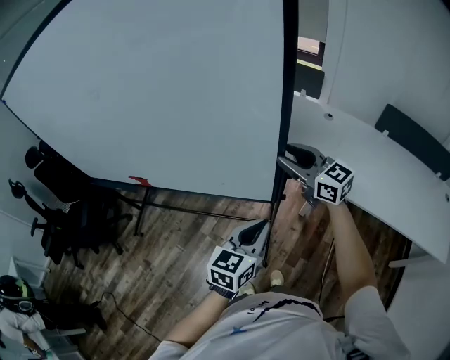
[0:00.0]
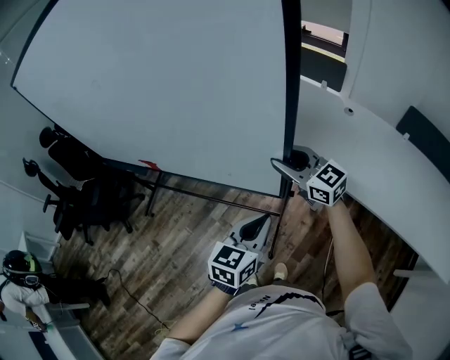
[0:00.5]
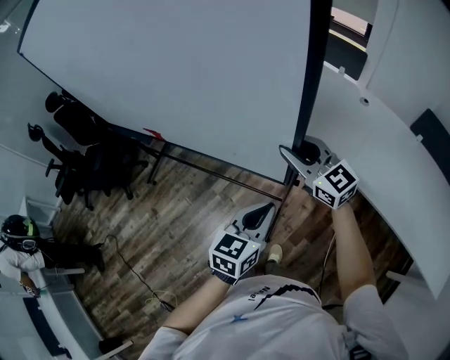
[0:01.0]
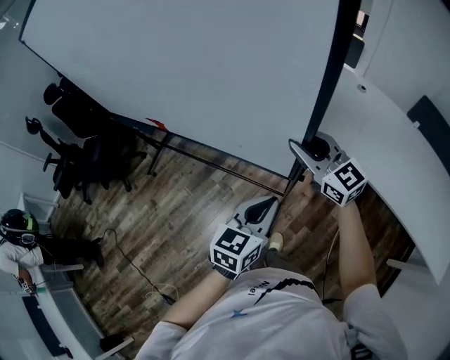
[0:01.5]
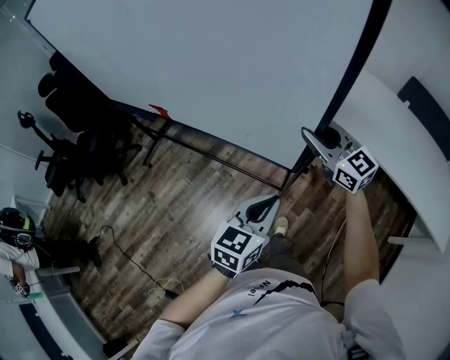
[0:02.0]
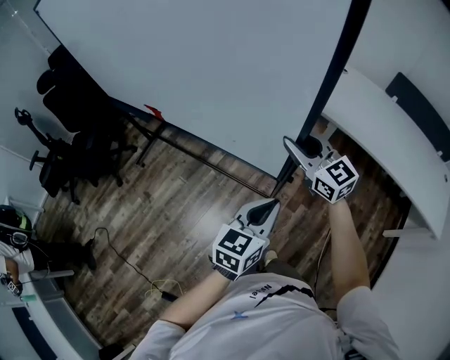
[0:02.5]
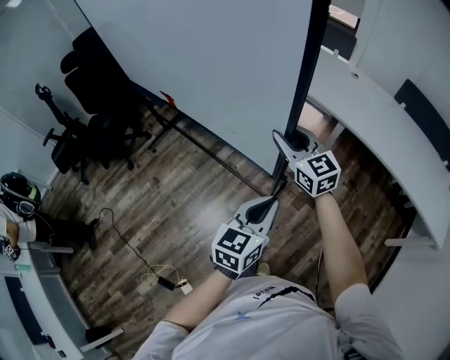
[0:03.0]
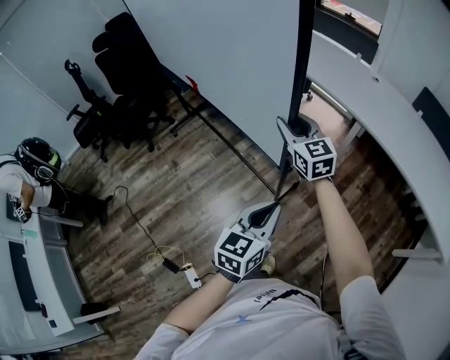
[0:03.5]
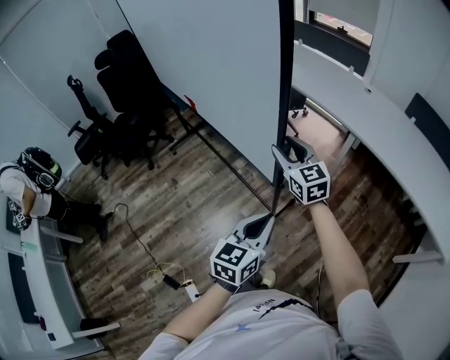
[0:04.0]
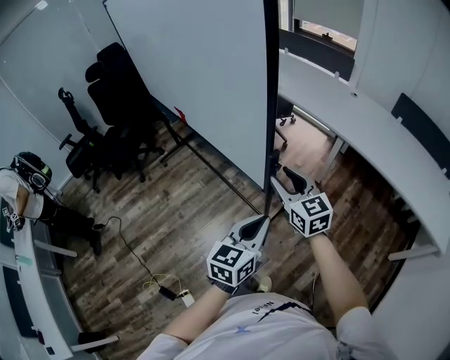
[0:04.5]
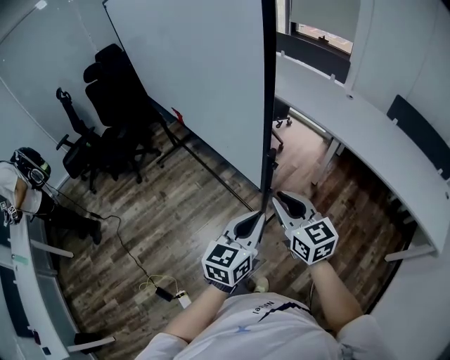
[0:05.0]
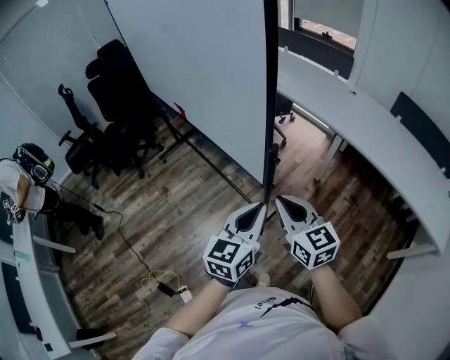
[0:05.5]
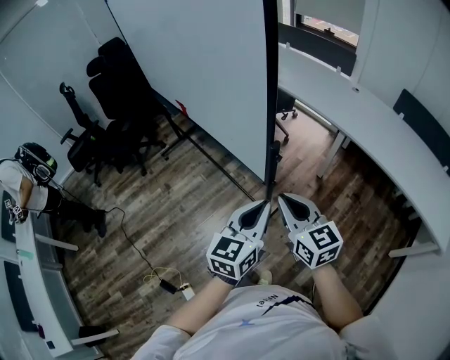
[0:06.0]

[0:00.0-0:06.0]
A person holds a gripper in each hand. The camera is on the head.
0:00.0 to 0:02.0: Both grippers travel together backward and to the left, some 20 cm.
0:02.0 to 0:04.0: The left gripper goes about 25 cm backward. The right gripper moves backward and to the left, roughly 25 cm.
0:04.0 to 0:06.0: The right gripper goes roughly 20 cm backward, and closes up.

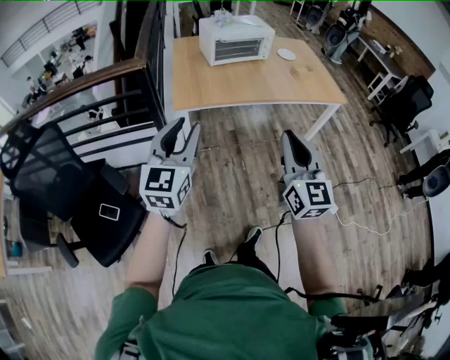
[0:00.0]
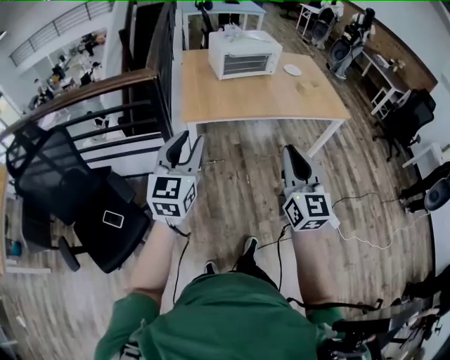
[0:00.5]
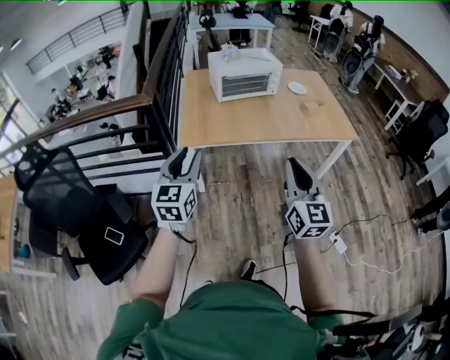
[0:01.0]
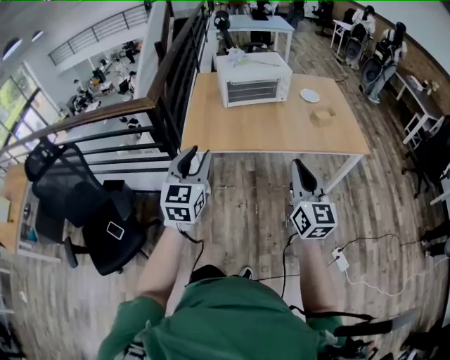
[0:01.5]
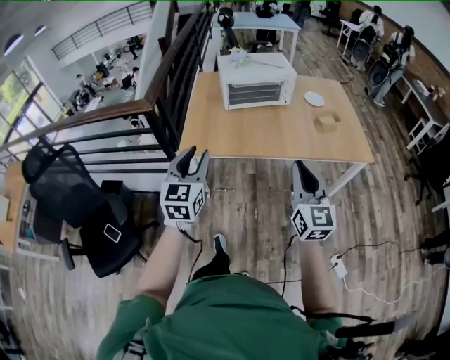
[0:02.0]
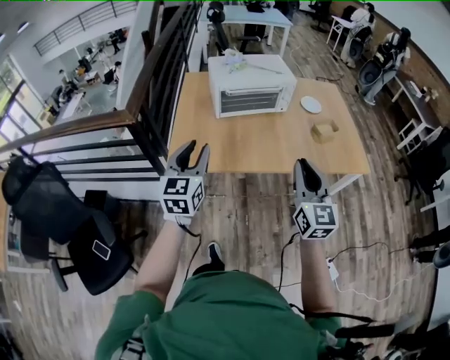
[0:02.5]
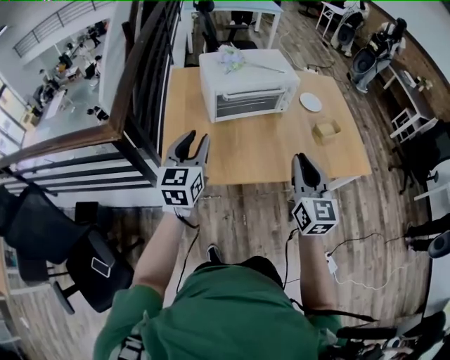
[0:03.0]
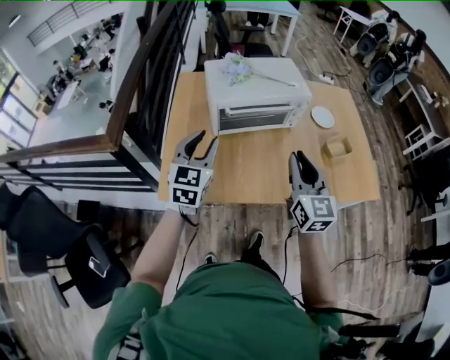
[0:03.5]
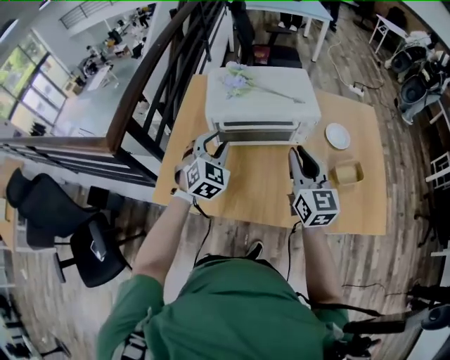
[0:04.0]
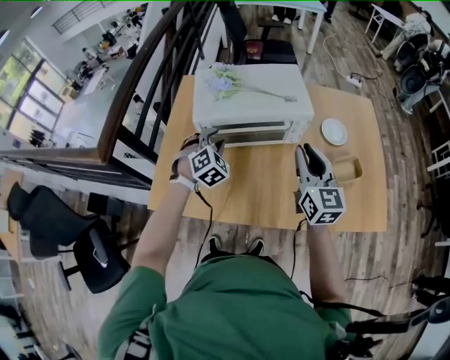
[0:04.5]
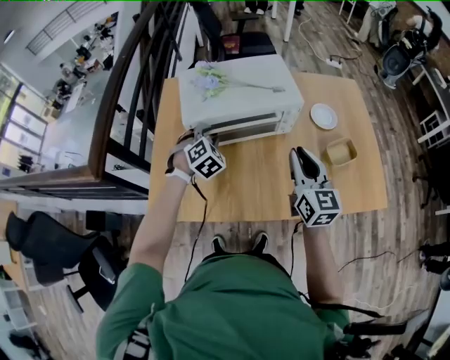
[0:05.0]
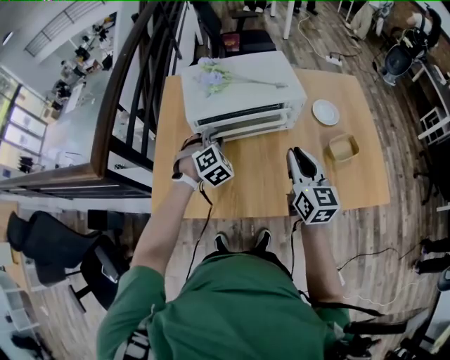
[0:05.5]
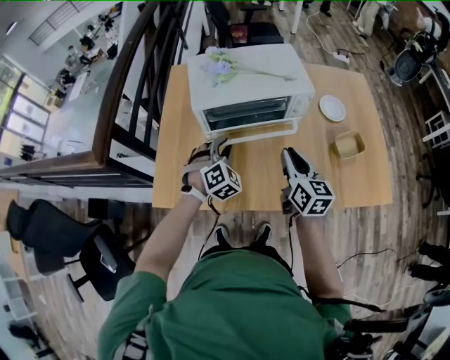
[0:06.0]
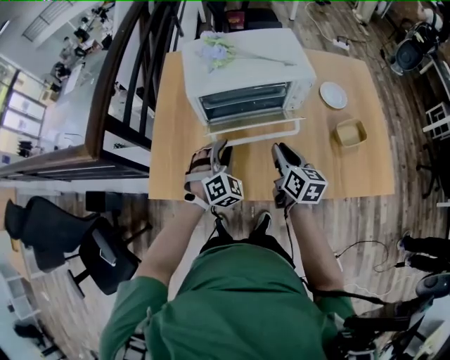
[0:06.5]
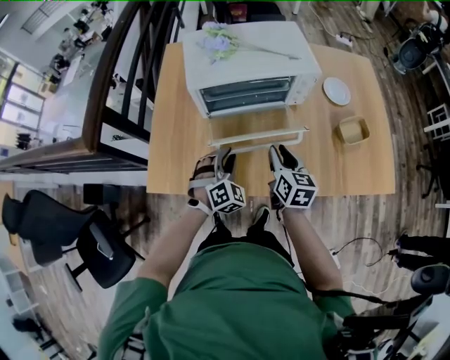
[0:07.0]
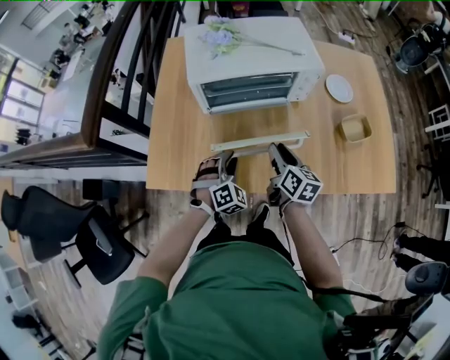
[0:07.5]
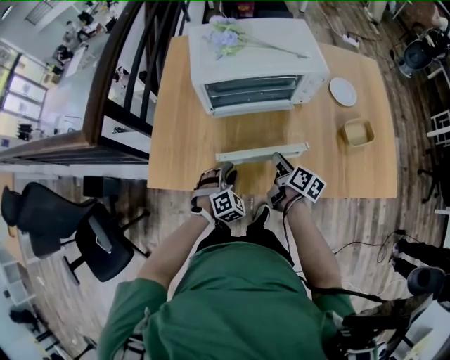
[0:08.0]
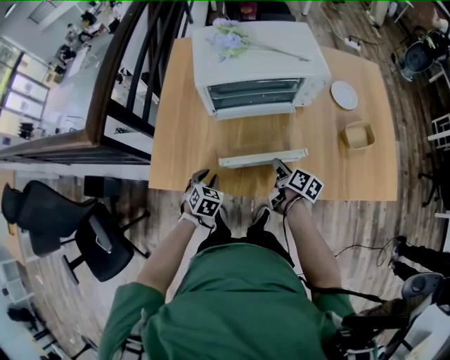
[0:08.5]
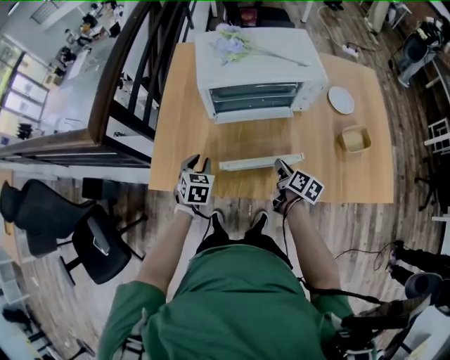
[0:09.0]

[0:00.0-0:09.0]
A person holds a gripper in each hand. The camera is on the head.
0:00.0 to 0:02.0: The two grippers go some 25 cm forward and to the right.
0:02.0 to 0:04.5: The pair of grippers is taken forward, about 50 cm. The left gripper angles its fingers downward, by about 30 degrees.
0:04.5 to 0:07.0: The right gripper travels downward and to the left by some 20 cm, and turns by about 30 degrees. Meanwhile the left gripper moves backward and downward, some 15 cm.
0:07.0 to 0:09.0: The left gripper goes some 15 cm to the left, and rolls counterclockwise, seen from behind, by approximately 50 degrees. Meanwhile the right gripper heads downward, covering some 10 cm, and turns by some 30 degrees.

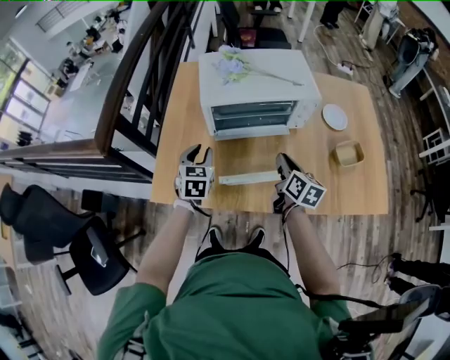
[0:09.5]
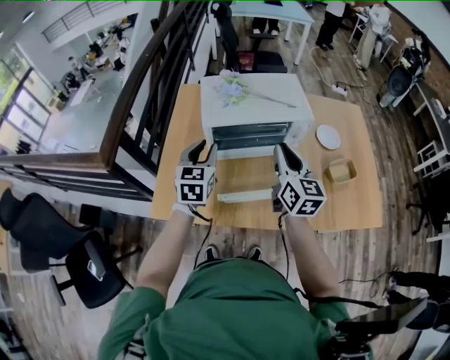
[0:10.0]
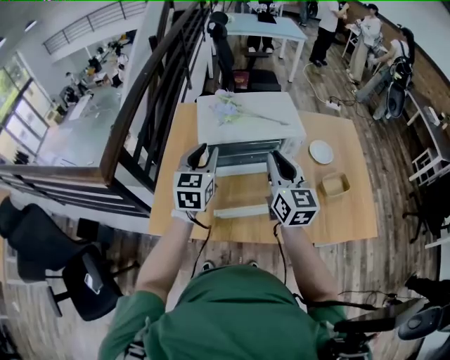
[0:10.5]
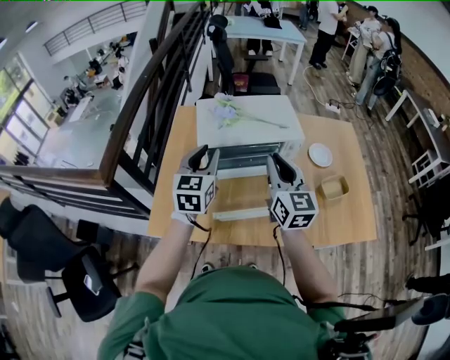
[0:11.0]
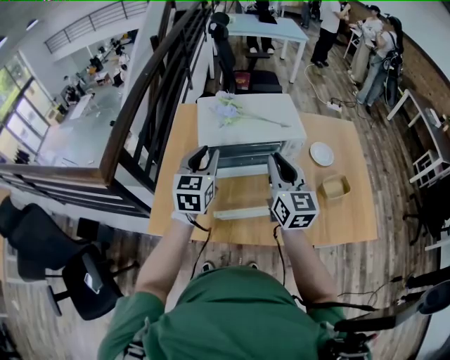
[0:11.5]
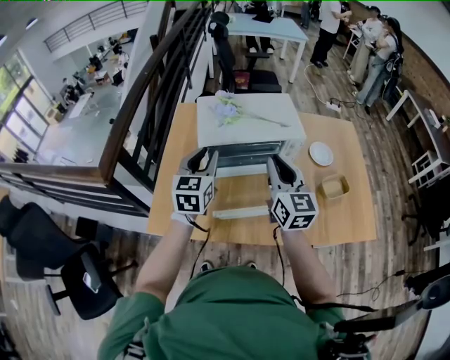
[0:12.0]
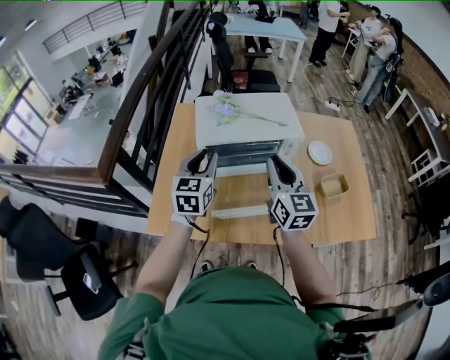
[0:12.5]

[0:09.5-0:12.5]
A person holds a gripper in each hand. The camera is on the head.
0:09.5 to 0:11.0: The grippers both shift upward by roughly 20 cm. The left gripper turns by some 20 degrees. The right gripper turns by roughly 40 degrees.
0:11.0 to 0:12.5: The grippers move only a little.

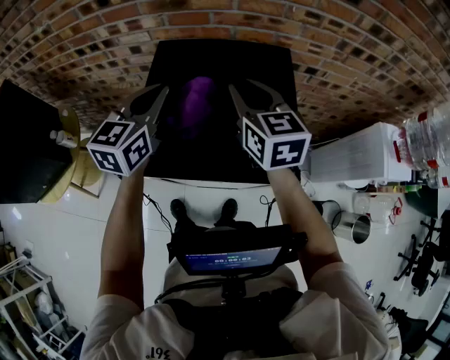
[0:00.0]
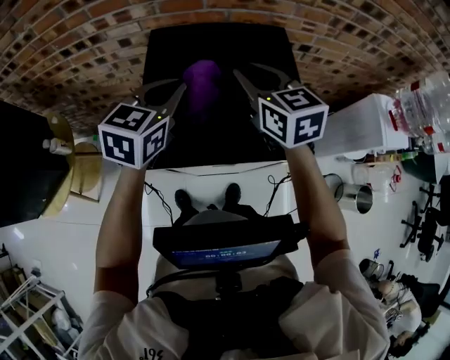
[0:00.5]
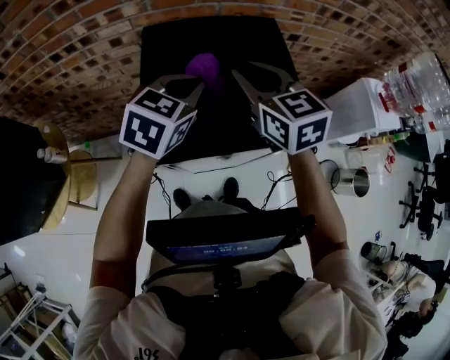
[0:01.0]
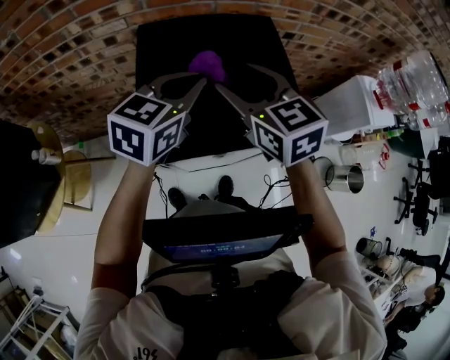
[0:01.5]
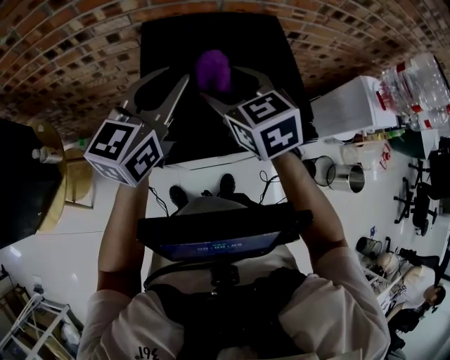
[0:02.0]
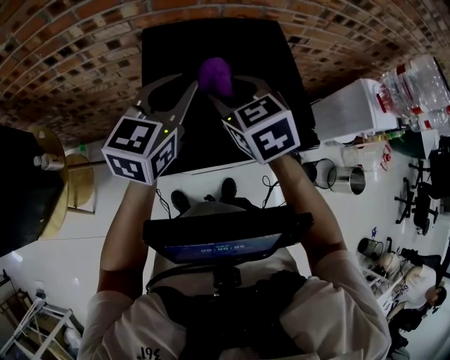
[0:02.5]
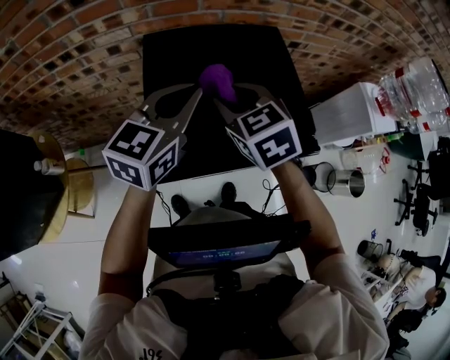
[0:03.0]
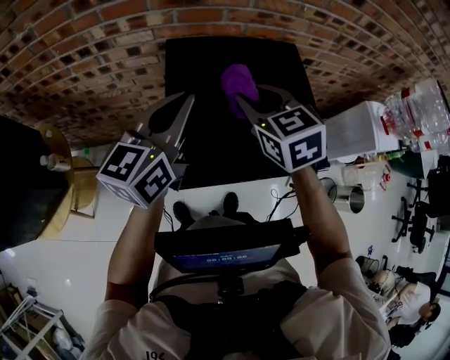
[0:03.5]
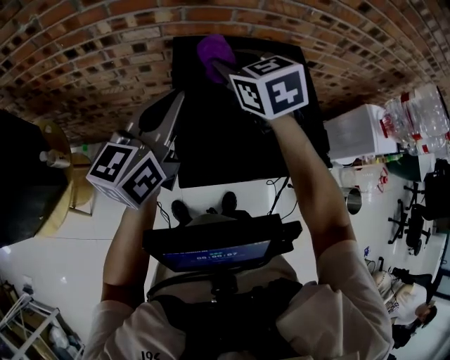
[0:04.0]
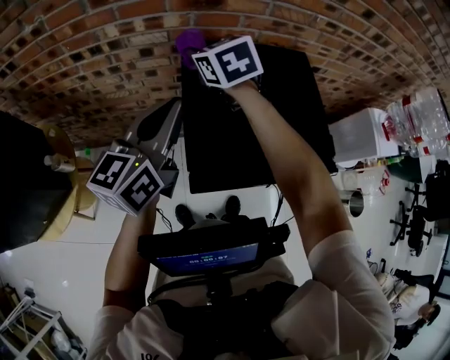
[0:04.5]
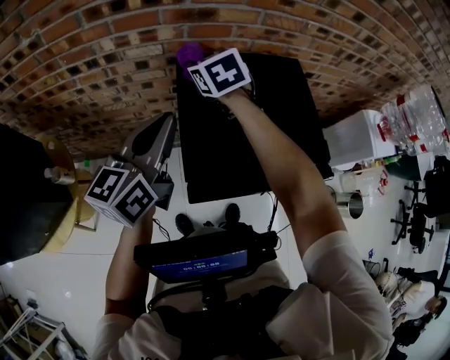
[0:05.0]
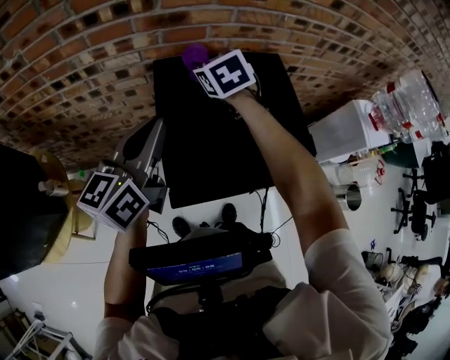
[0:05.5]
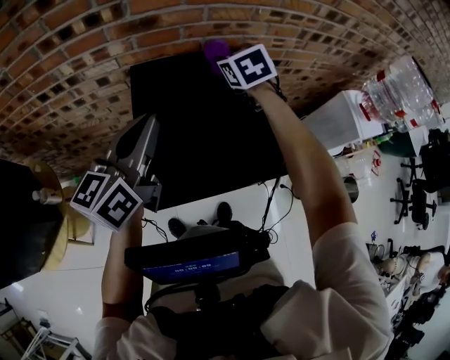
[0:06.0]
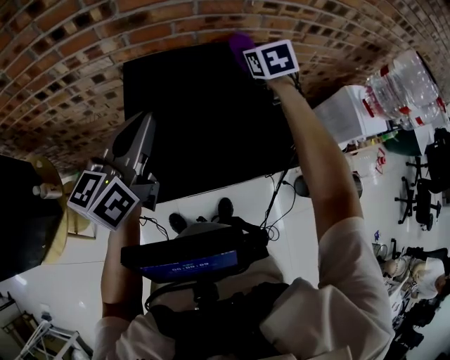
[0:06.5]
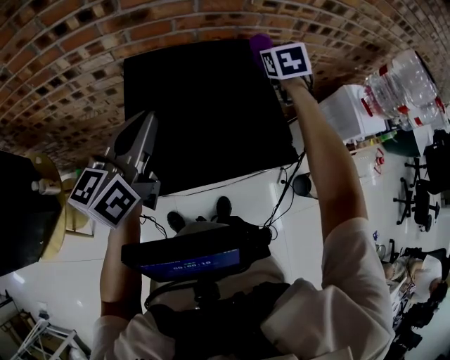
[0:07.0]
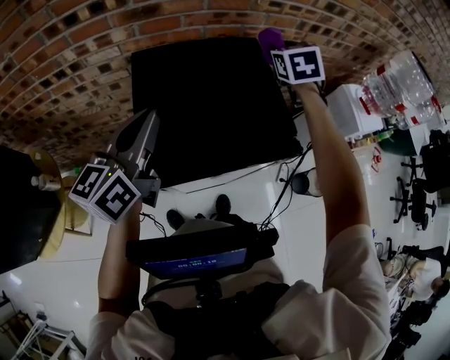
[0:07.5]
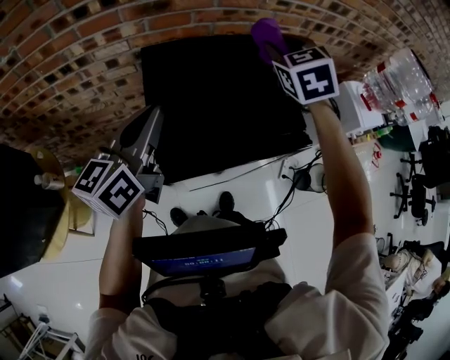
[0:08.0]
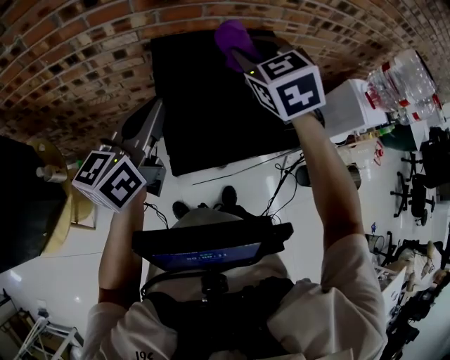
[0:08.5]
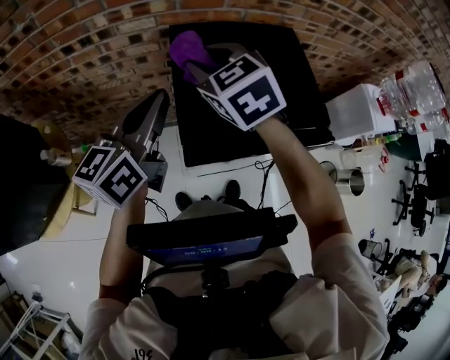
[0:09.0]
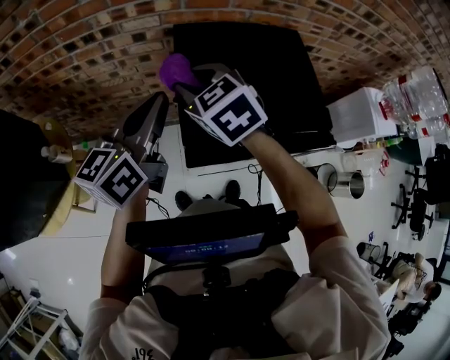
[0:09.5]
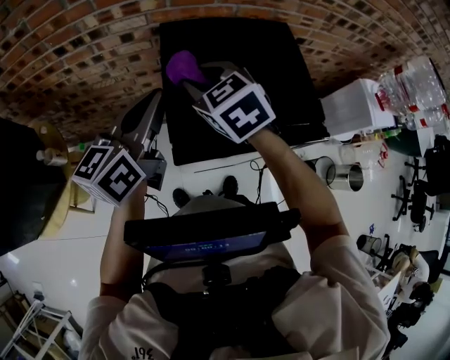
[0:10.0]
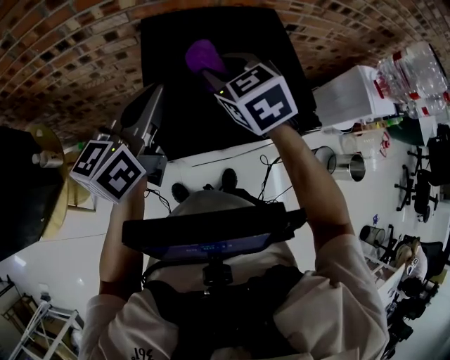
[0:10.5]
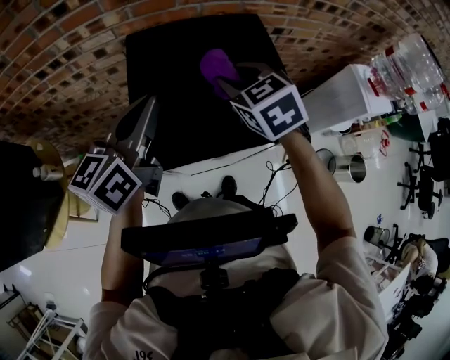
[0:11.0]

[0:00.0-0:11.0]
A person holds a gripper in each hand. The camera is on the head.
0:00.0 to 0:02.0: The right gripper heads to the left and backward, covering approximately 10 cm, and opens up, while the left gripper opens up.
0:02.0 to 0:03.5: The left gripper closes its fingers; the right gripper closes its fingers.
0:03.5 to 0:05.5: The right gripper moves forward, roughly 15 cm.
0:05.5 to 0:07.5: The left gripper shifts by some 5 cm; the right gripper shifts about 25 cm to the right, and rotates approximately 20 degrees.
0:07.5 to 0:09.0: The right gripper goes about 35 cm to the left and backward, and turns by roughly 30 degrees; the left gripper shifts about 5 cm to the left.
0:09.0 to 0:11.0: The left gripper moves to the right, roughly 10 cm, while the right gripper travels to the right by roughly 15 cm.
